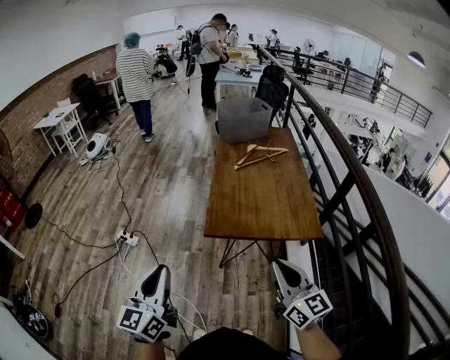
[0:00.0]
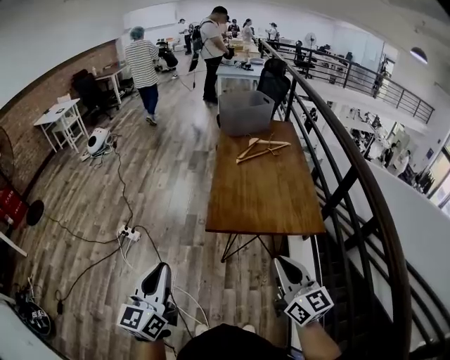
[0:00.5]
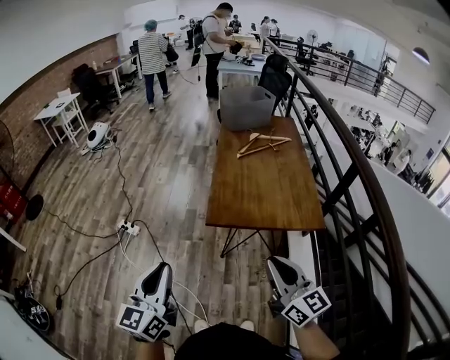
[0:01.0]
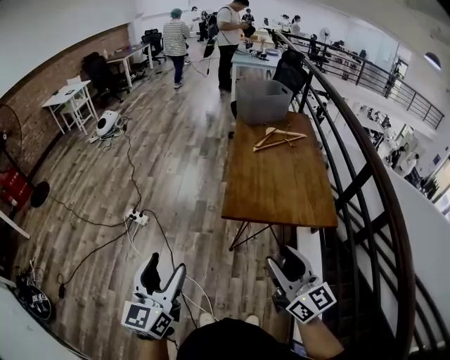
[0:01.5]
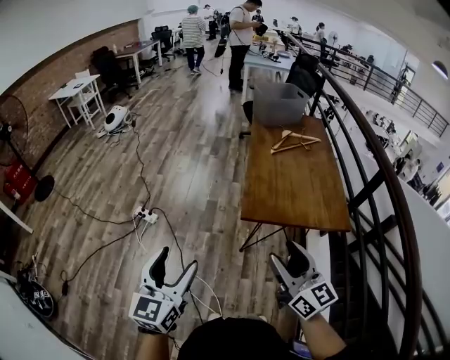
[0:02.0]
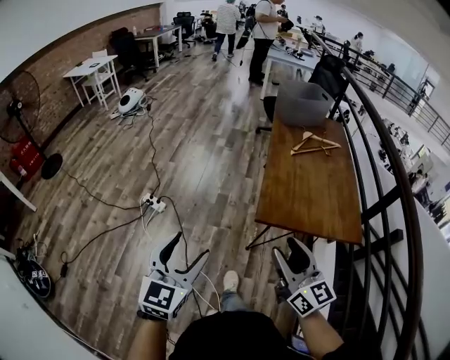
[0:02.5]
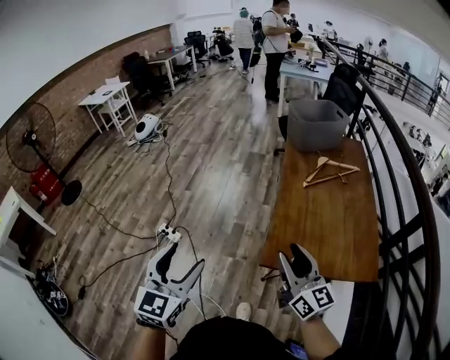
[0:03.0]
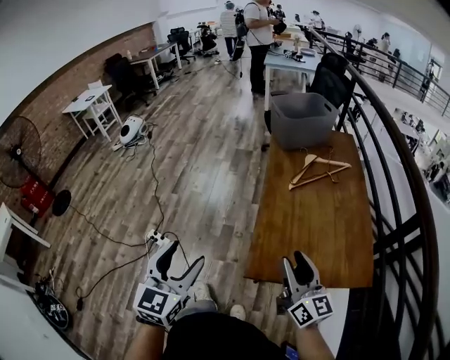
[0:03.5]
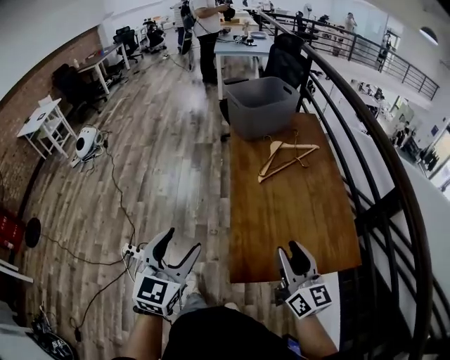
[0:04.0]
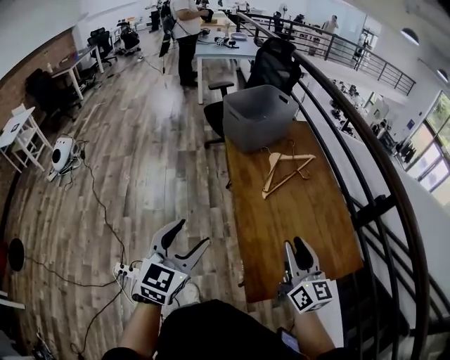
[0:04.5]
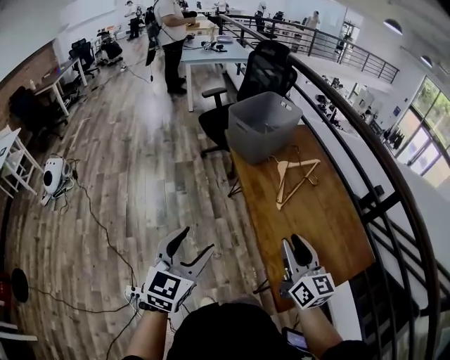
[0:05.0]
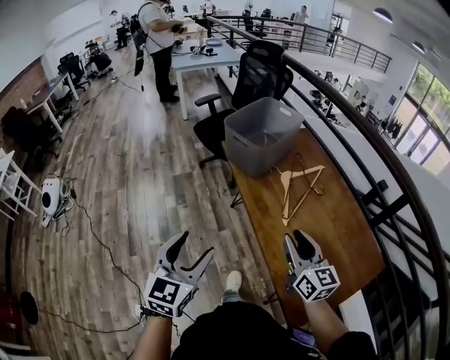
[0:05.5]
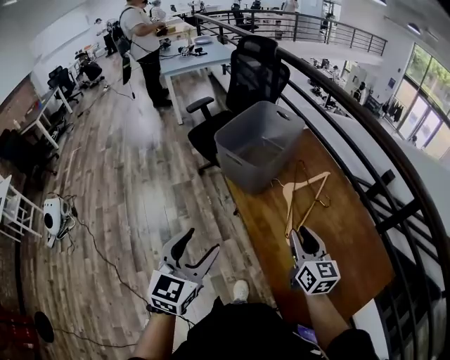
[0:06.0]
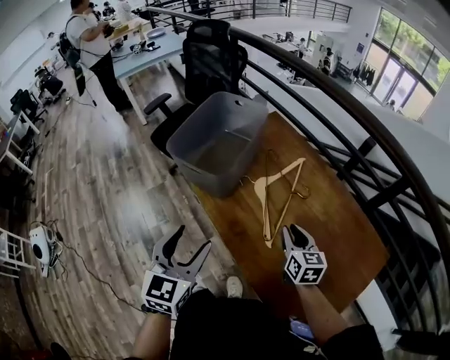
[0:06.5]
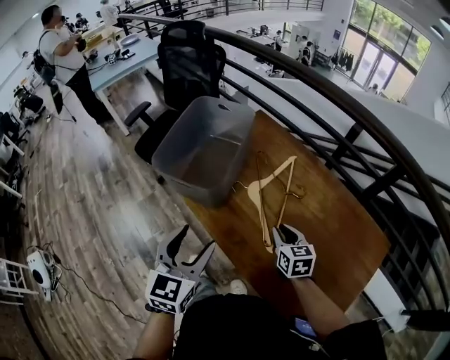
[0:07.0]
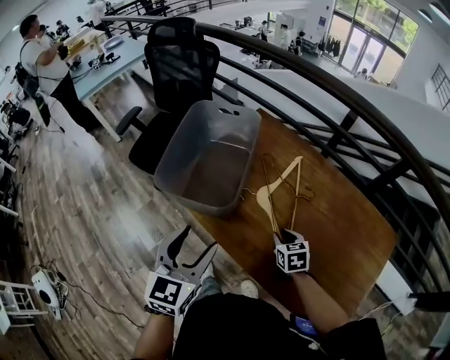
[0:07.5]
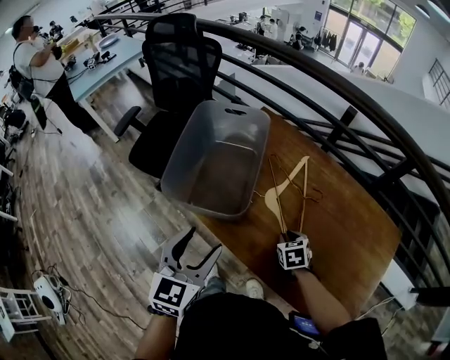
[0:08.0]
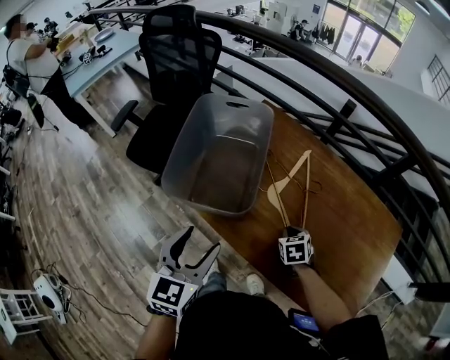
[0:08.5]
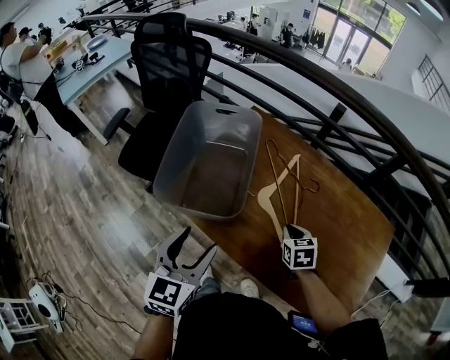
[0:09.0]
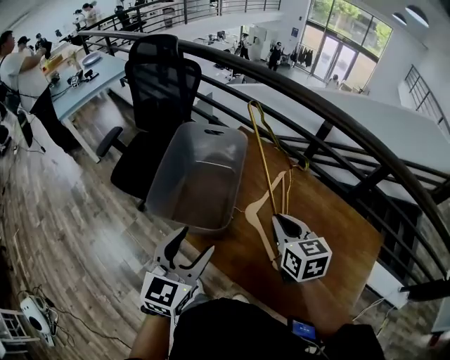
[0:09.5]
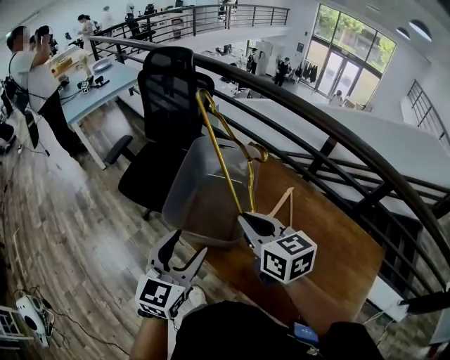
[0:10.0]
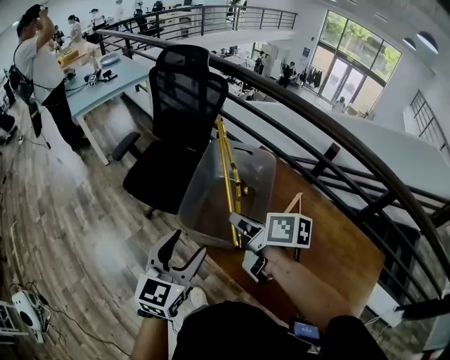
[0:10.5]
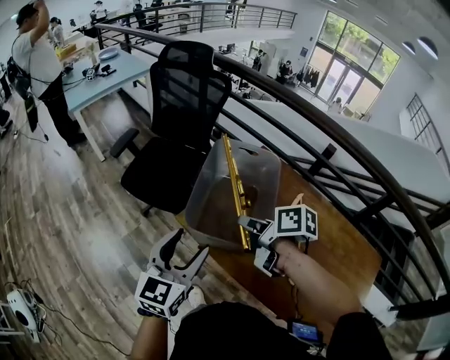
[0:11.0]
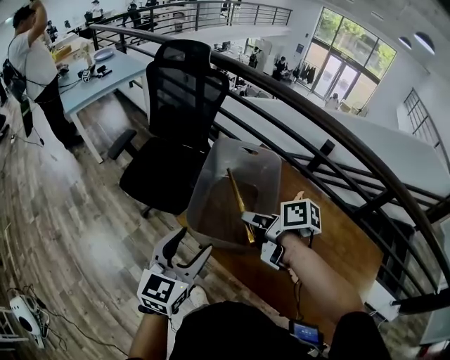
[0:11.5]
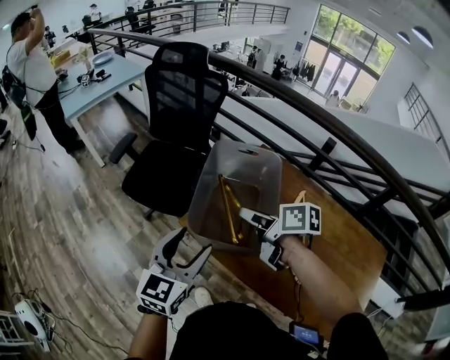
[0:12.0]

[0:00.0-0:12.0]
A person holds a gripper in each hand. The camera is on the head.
0:00.0 to 0:02.0: Both grippers move to the left, approximately 10 cm. The left gripper opens its fingers. Meanwhile the right gripper opens its fingers.
0:02.0 to 0:04.0: The grippers both shift forward by approximately 30 cm.
0:04.0 to 0:06.0: The left gripper ends up about 40 cm from where it was, and rotates approximately 20 degrees. Meanwhile the right gripper shifts by about 35 cm, and turns by about 30 degrees.
0:06.0 to 0:08.0: The right gripper is displaced downward by approximately 20 cm, and points its fingers approximately 50 degrees further downward, while the left gripper changes place by some 25 cm, and turns by roughly 30 degrees.
0:08.0 to 0:10.0: The left gripper changes place by approximately 10 cm. Meanwhile the right gripper shifts some 35 cm upward and to the left, and tilts its fingers approximately 40 degrees upward.
0:10.0 to 0:12.0: The right gripper heads forward and downward, covering approximately 10 cm, turns by roughly 40 degrees, and opens its fingers, while the left gripper heads to the left, covering about 5 cm.

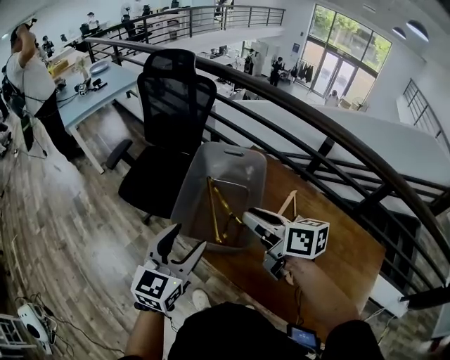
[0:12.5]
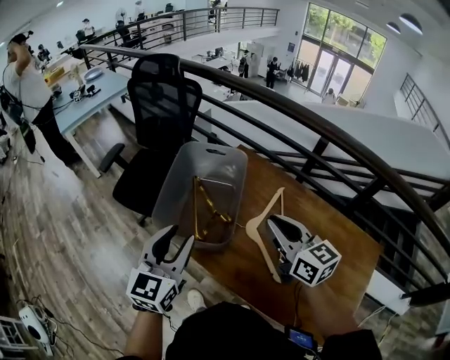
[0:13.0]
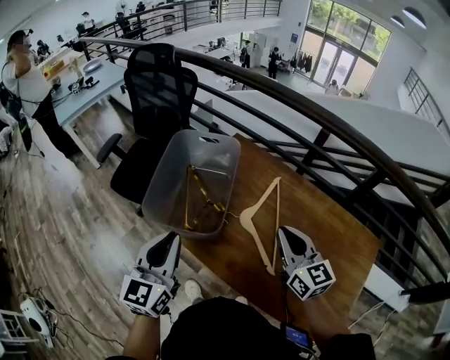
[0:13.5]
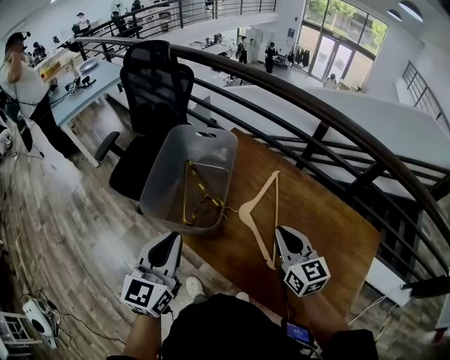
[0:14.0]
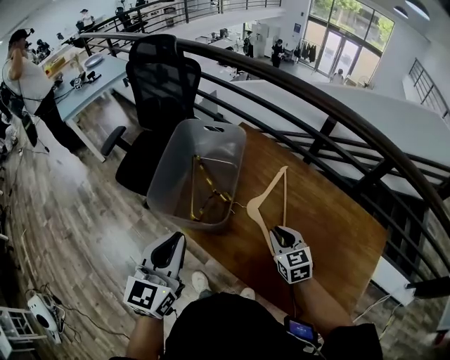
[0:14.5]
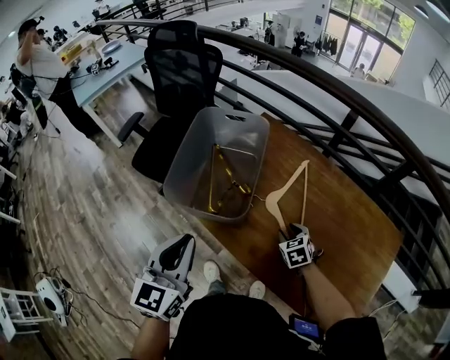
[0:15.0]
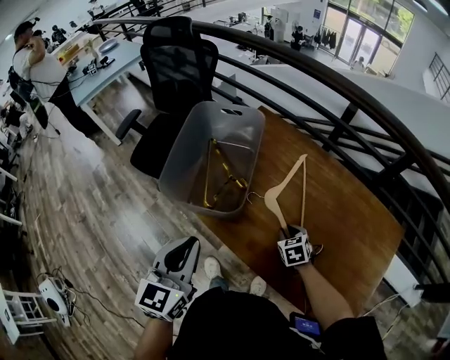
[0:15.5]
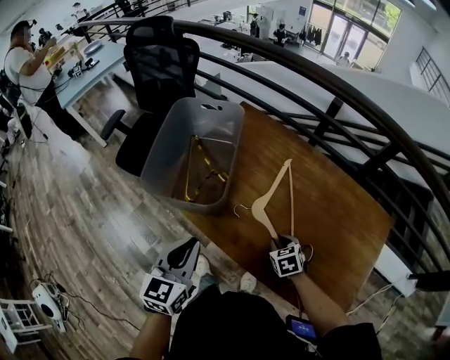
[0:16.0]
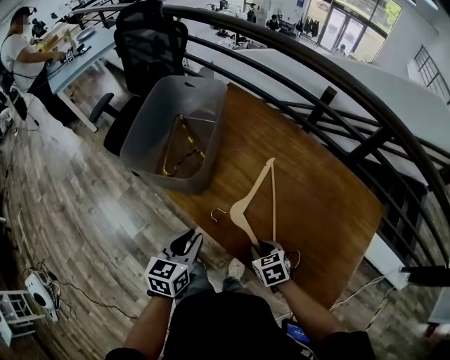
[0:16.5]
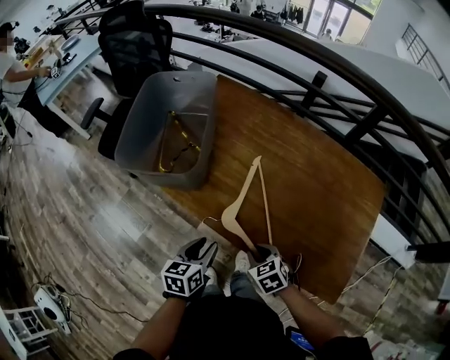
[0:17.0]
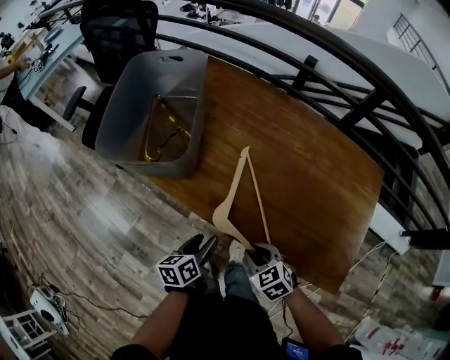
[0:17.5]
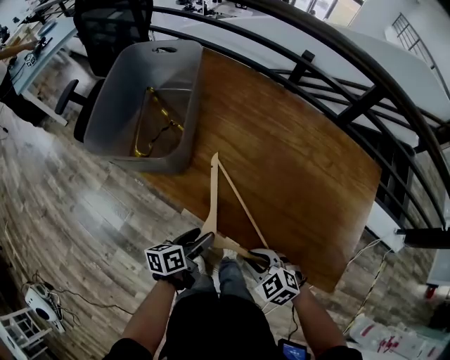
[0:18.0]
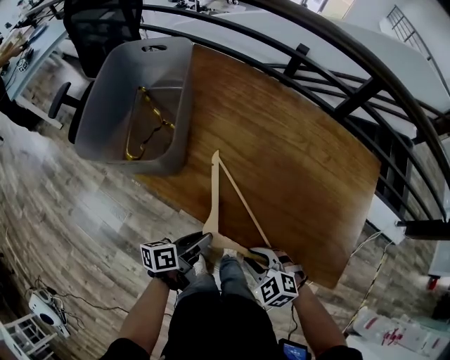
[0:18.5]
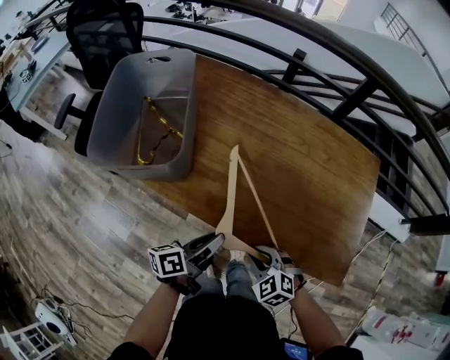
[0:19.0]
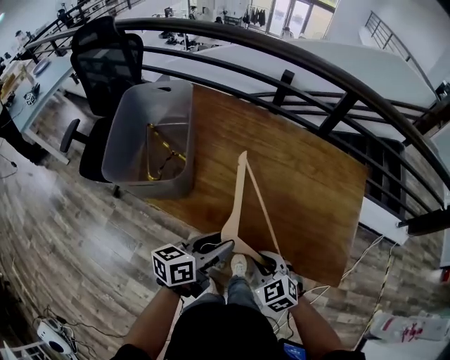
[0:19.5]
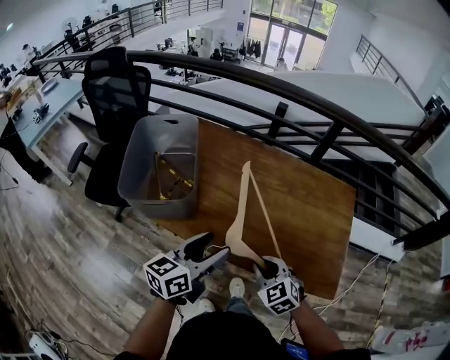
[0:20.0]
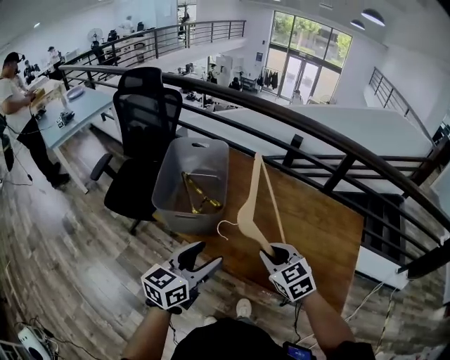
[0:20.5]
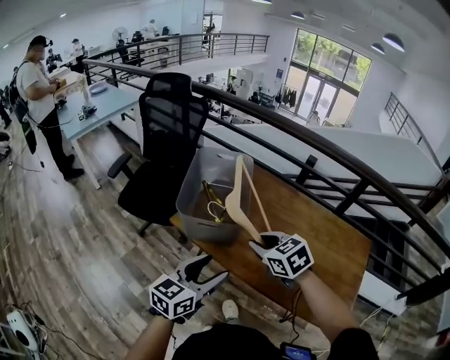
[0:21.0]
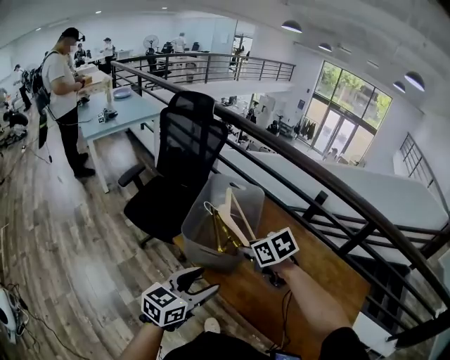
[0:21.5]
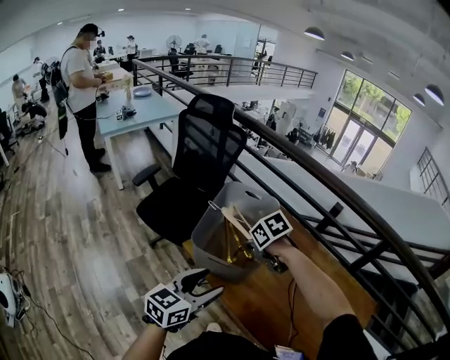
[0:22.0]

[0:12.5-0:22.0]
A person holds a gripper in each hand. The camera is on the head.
0:12.5 to 0:14.5: The right gripper heads downward, to the right and backward, covering some 25 cm, and rotates some 40 degrees. Meanwhile the left gripper shifts roughly 5 cm backward, and closes up.
0:14.5 to 0:16.5: The right gripper travels backward and downward by about 20 cm, changes its angle by about 30 degrees, and opens and closes again. The left gripper heads downward, to the right and backward, covering roughly 20 cm, and turns by about 30 degrees.
0:16.5 to 0:18.0: The right gripper shifts some 10 cm backward, and changes its angle by roughly 20 degrees; the left gripper heads downward, covering roughly 15 cm, turns by some 40 degrees, and opens up.
0:18.0 to 0:20.0: The right gripper goes about 15 cm upward and forward, and swivels about 30 degrees. The left gripper goes about 25 cm upward, turns by some 40 degrees, and closes and opens again.
0:20.0 to 0:22.0: The right gripper ends up about 40 cm from where it was, and turns by about 40 degrees; the left gripper ends up some 20 cm from where it was, and turns by roughly 30 degrees.

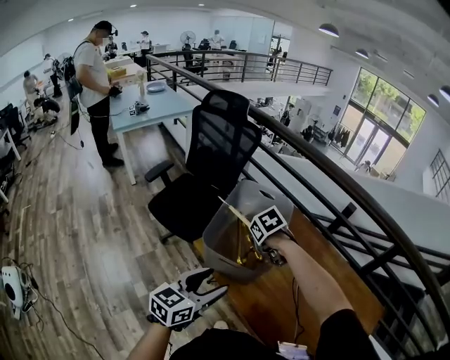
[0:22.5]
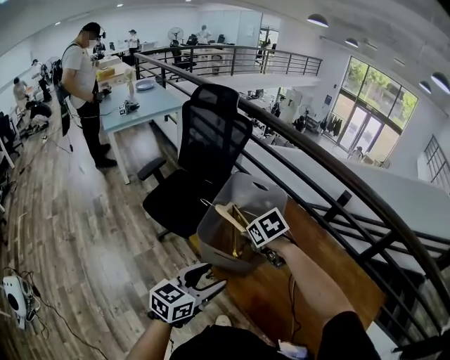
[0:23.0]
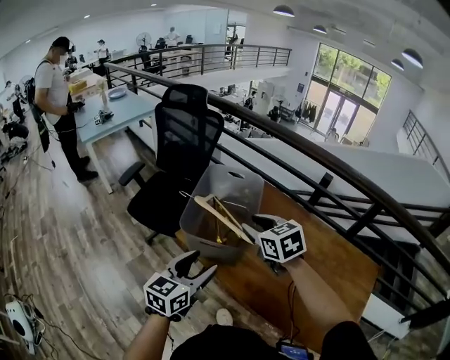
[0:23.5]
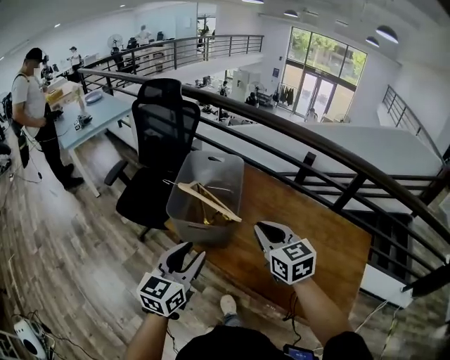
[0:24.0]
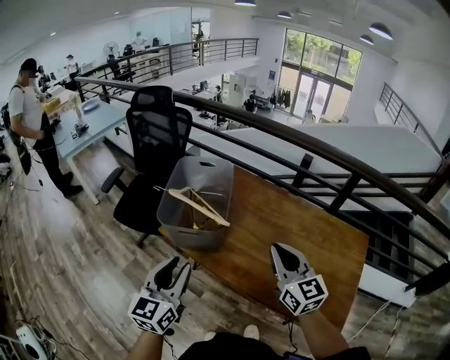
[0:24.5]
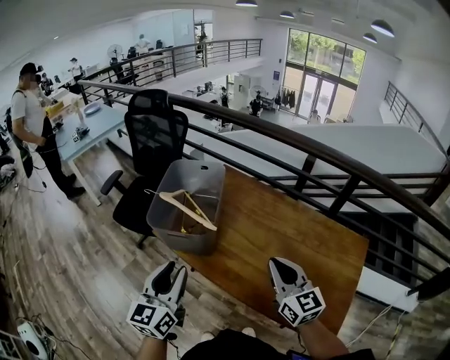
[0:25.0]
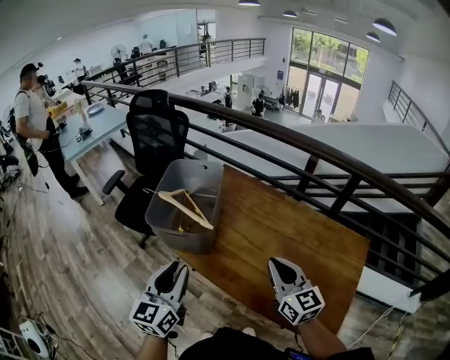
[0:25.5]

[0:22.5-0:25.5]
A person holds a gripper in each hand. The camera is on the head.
0:22.5 to 0:24.0: The right gripper moves backward, upward and to the right, roughly 25 cm, tips its fingers upward by about 50 degrees, and opens, then closes again.
0:24.0 to 0:25.5: The right gripper goes approximately 15 cm to the right and backward. The left gripper moves roughly 5 cm.

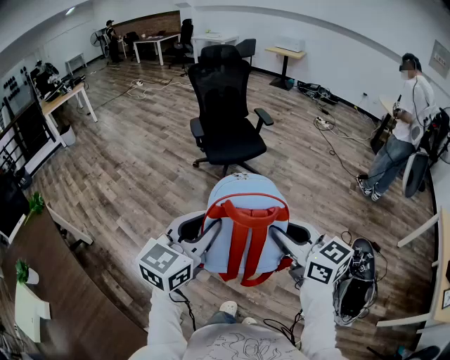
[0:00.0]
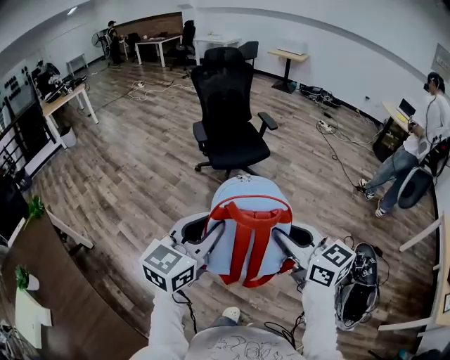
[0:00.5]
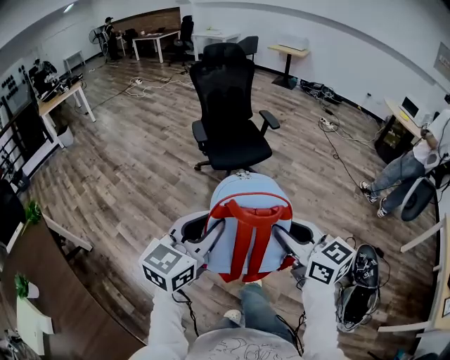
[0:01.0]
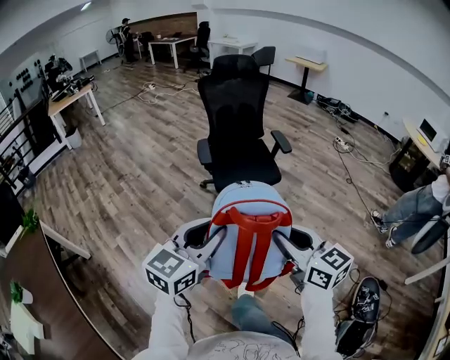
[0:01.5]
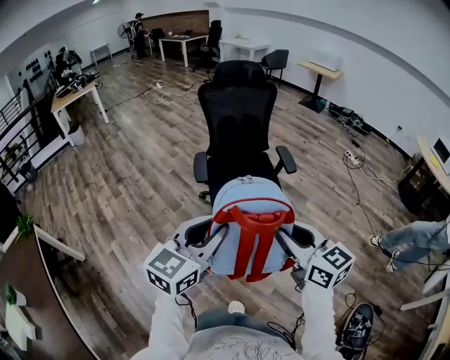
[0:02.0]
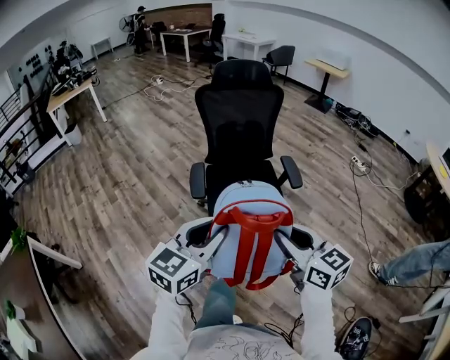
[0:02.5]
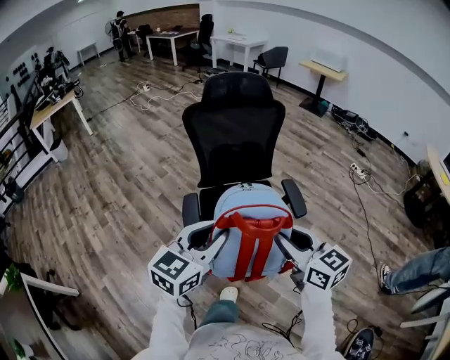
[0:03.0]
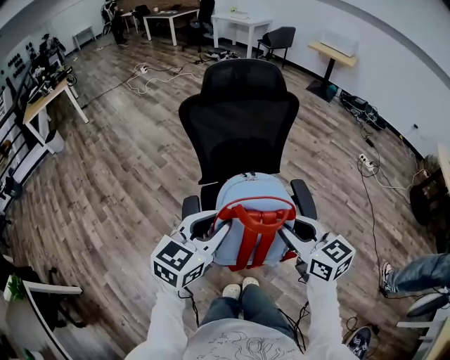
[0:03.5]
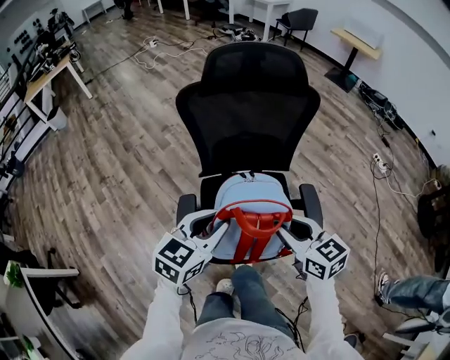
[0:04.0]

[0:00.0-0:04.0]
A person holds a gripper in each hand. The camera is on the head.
0:00.0 to 0:02.0: The pair of grippers is taken forward, about 40 cm.
0:02.0 to 0:04.0: The two grippers travel together, forward, approximately 60 cm.
